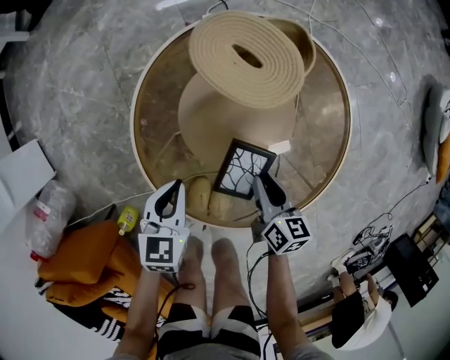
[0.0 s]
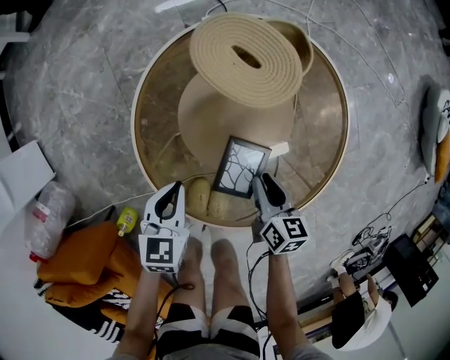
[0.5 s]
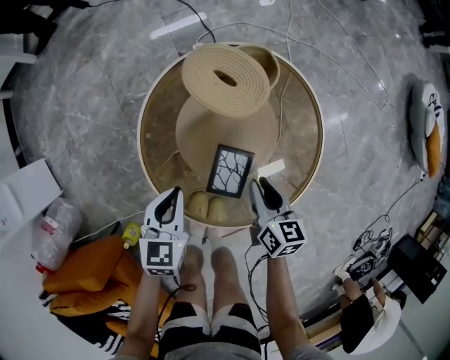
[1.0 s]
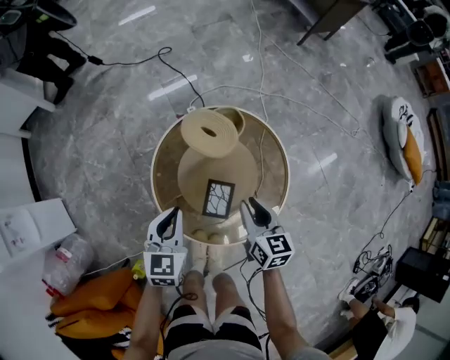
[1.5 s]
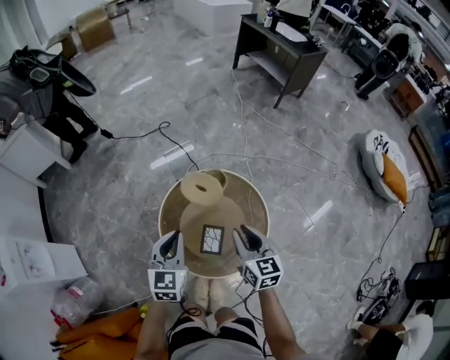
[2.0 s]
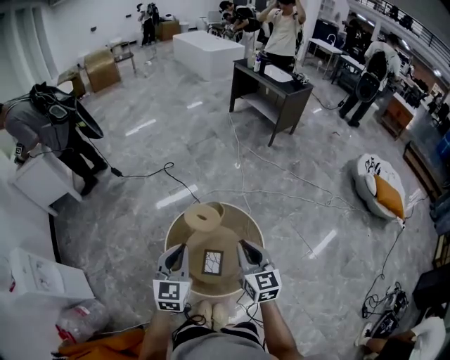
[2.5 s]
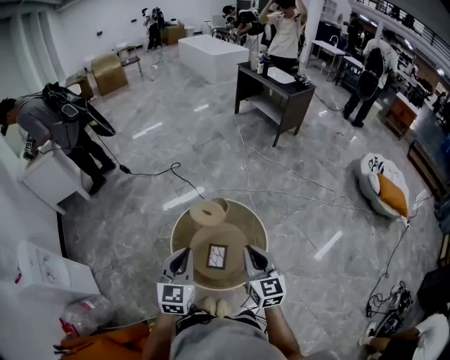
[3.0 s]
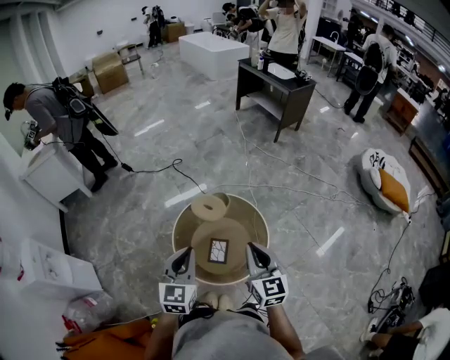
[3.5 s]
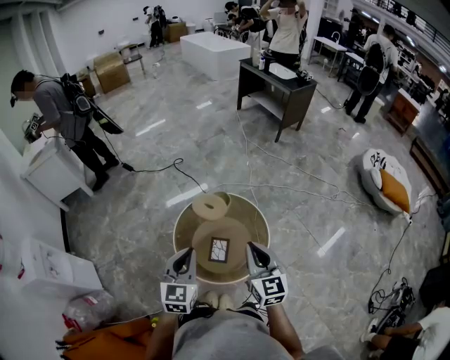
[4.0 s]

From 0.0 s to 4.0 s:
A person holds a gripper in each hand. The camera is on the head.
From 0.0 s to 2.0 s: Both grippers travel together upward, some 50 cm. The left gripper changes its angle by approximately 30 degrees; the right gripper turns by approximately 30 degrees.
From 2.0 s to 4.0 s: The left gripper heads backward and upward, covering some 20 cm, while the right gripper shifts roughly 20 cm upward and backward, and closes.

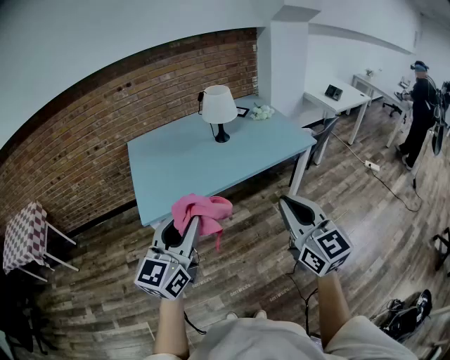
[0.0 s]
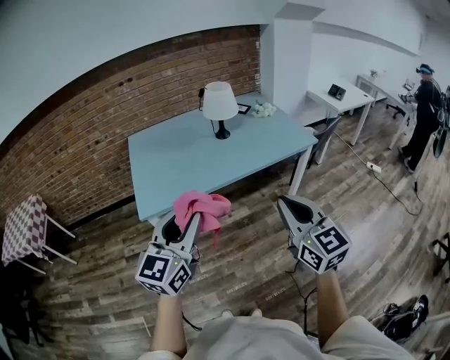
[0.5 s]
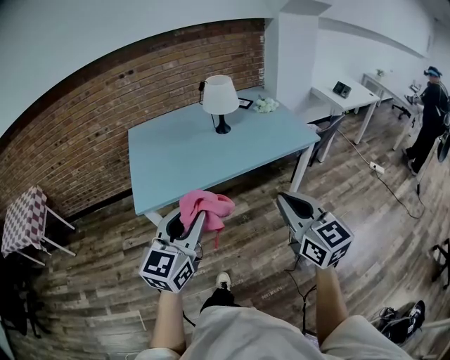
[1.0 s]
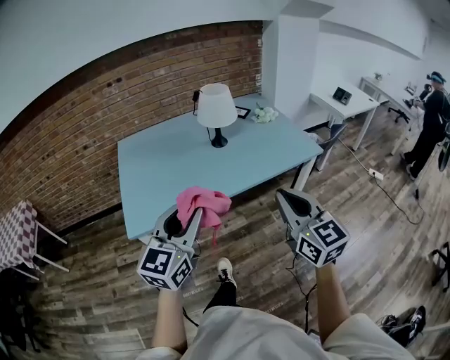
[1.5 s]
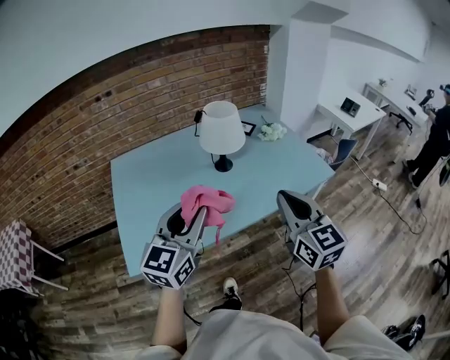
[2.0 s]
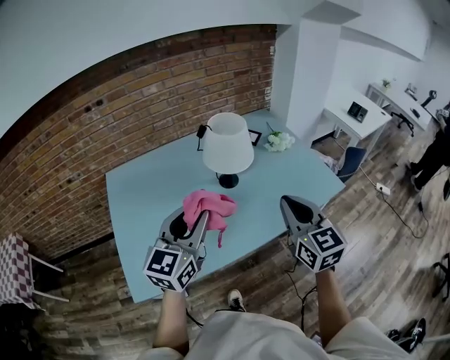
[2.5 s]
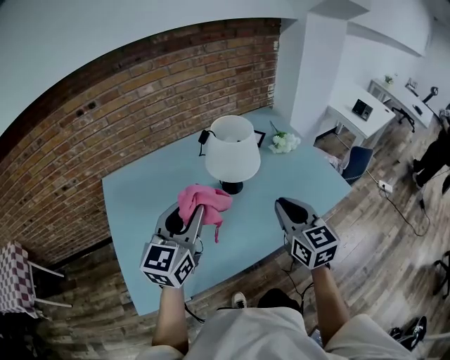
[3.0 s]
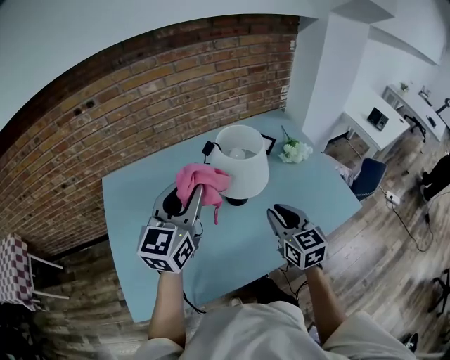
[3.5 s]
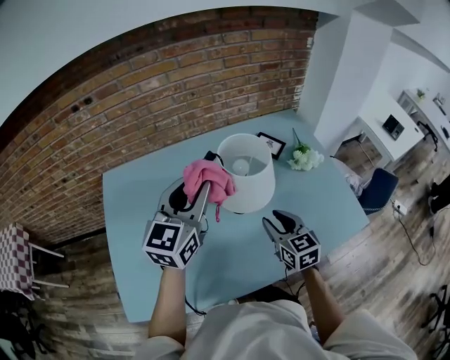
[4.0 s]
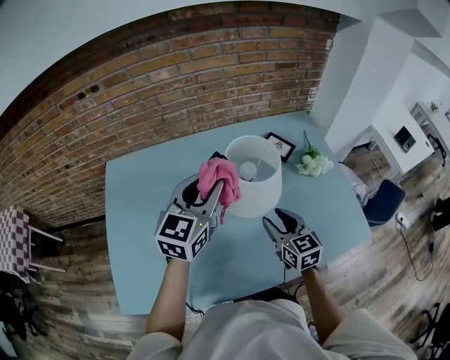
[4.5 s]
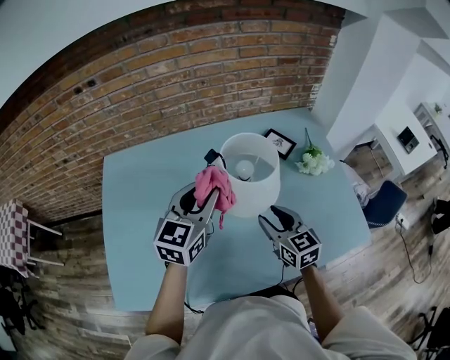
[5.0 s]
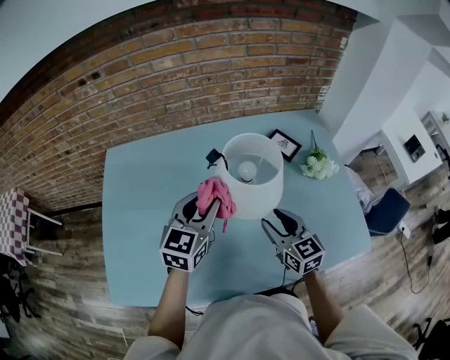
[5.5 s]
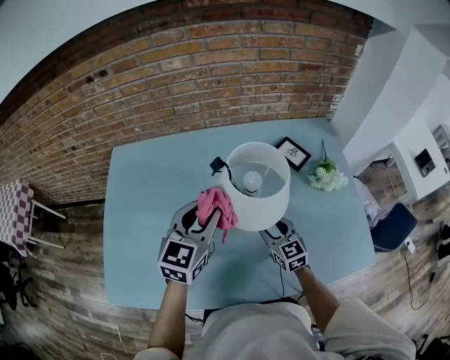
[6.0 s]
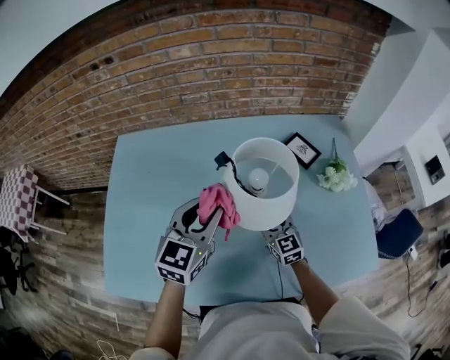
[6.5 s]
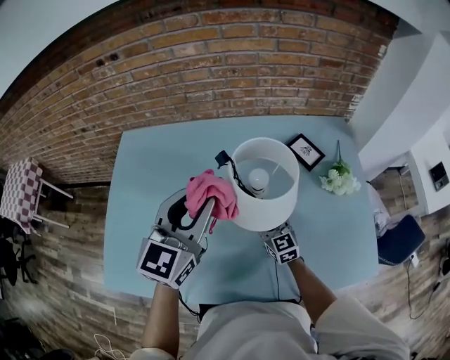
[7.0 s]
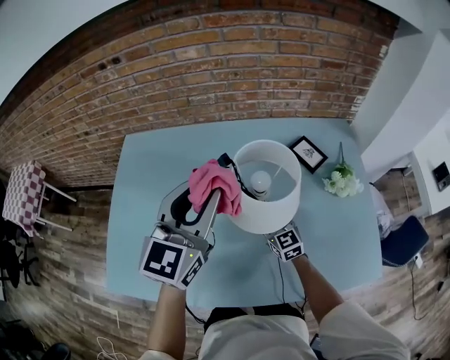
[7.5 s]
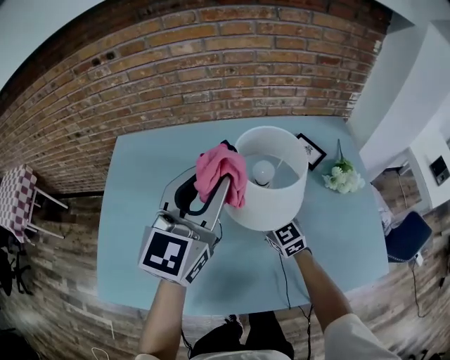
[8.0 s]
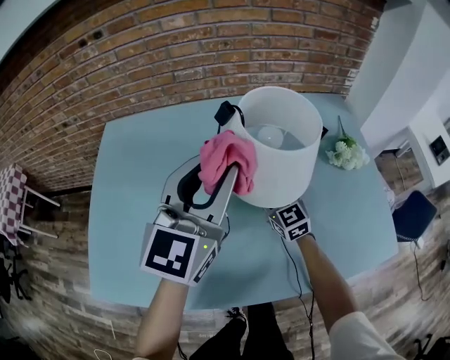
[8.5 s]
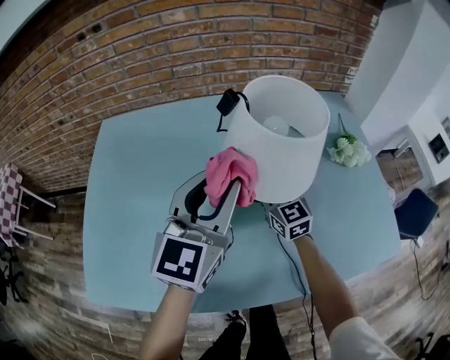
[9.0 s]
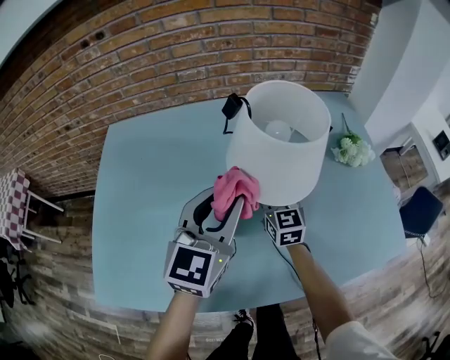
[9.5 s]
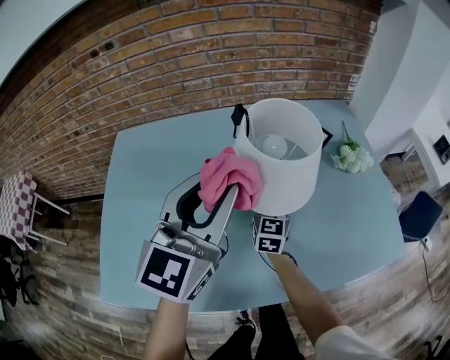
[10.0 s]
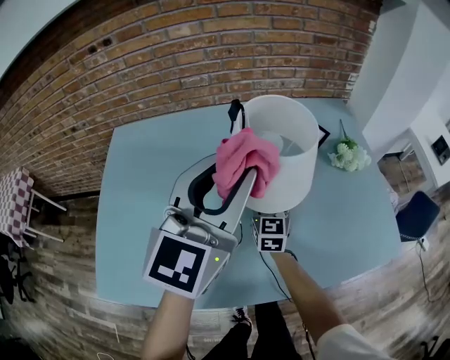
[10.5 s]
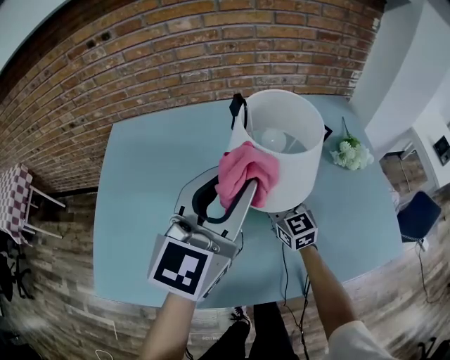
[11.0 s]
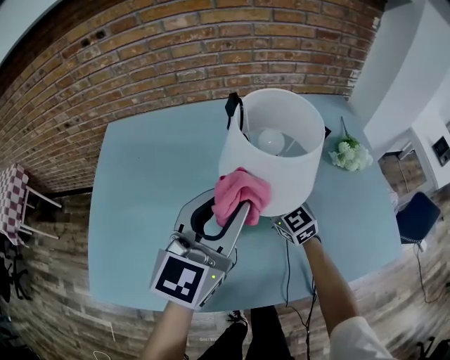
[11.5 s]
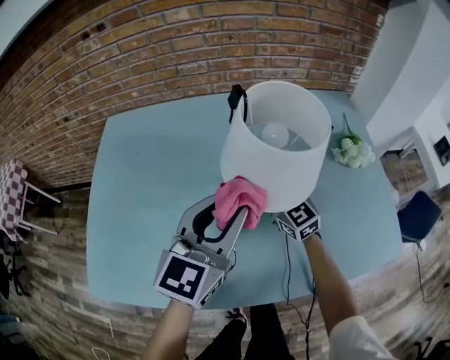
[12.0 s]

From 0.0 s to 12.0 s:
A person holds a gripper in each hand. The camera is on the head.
From 0.0 s to 2.0 s: Both grippers travel together forward, approximately 35 cm.
From 2.0 s to 4.0 s: The left gripper moves forward, about 35 cm. The right gripper moves forward and downward, some 40 cm, swivels some 20 degrees, and opens its fingers.
From 4.0 s to 6.0 s: The left gripper goes about 10 cm downward, while the right gripper travels downward and forward by some 15 cm.
From 6.0 s to 8.0 s: The right gripper heads forward and to the left, covering roughly 10 cm. The left gripper shifts approximately 10 cm upward.
From 8.0 s to 10.0 s: The right gripper changes its angle by some 40 degrees, and closes its fingers, while the left gripper is displaced backward by some 5 cm, and travels downward and back again, roughly 15 cm each way.
From 10.0 s to 12.0 s: The right gripper swivels about 40 degrees. The left gripper travels downward by roughly 10 cm.

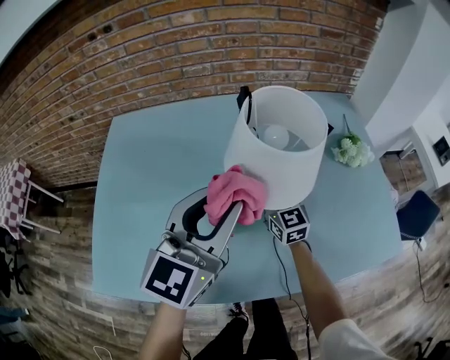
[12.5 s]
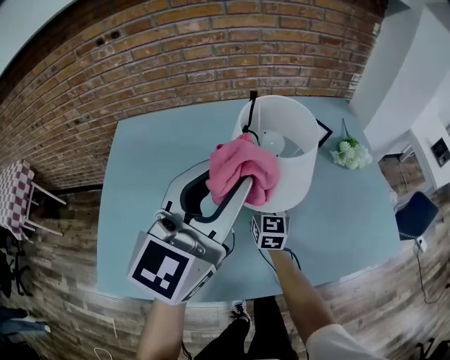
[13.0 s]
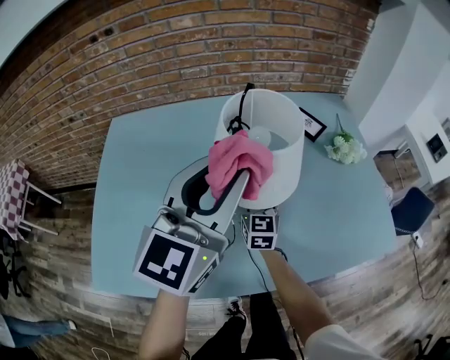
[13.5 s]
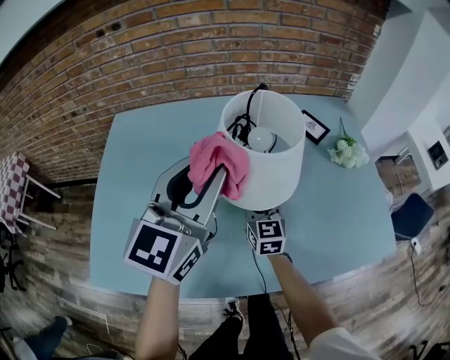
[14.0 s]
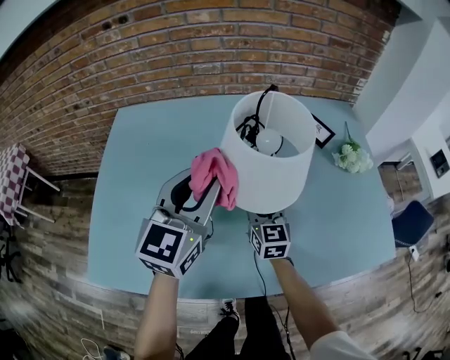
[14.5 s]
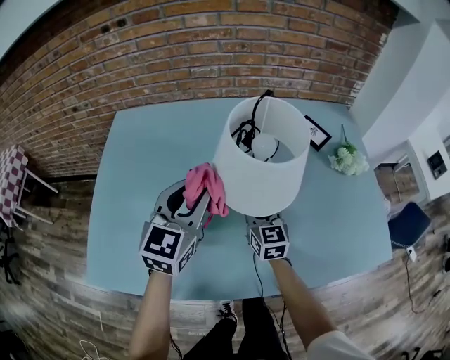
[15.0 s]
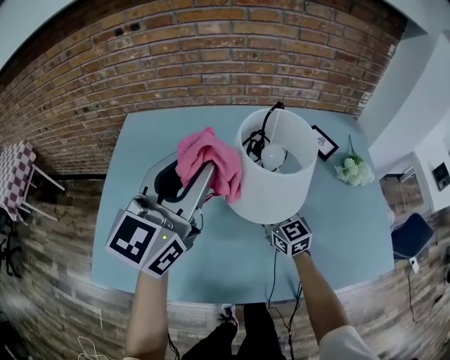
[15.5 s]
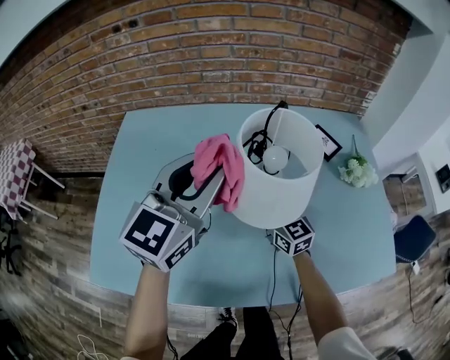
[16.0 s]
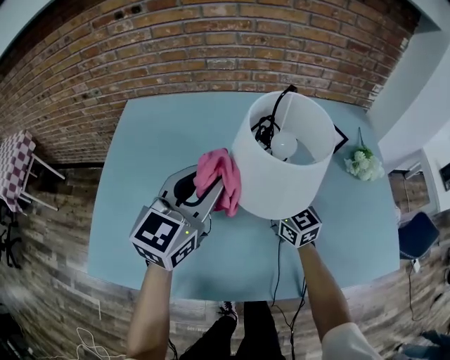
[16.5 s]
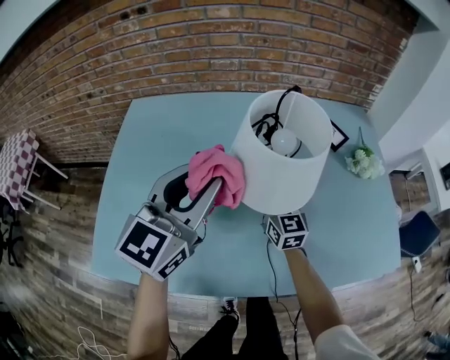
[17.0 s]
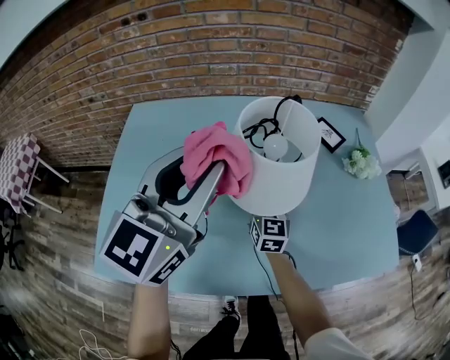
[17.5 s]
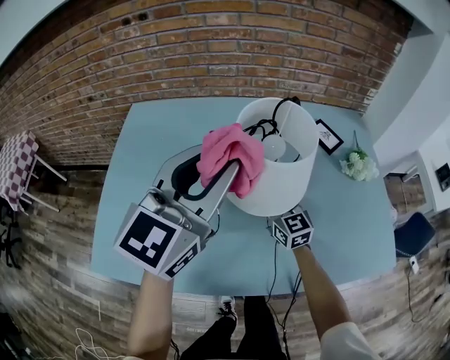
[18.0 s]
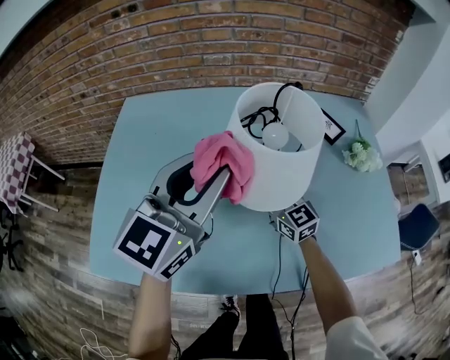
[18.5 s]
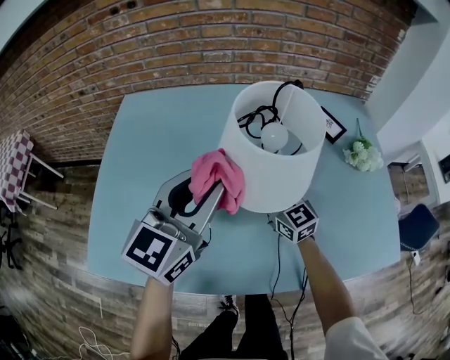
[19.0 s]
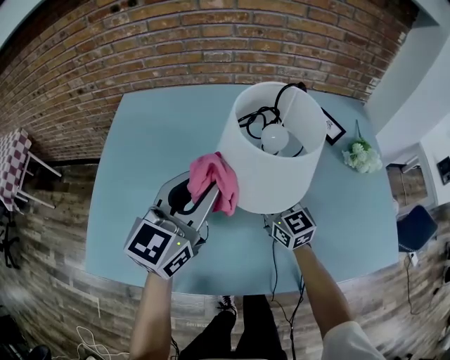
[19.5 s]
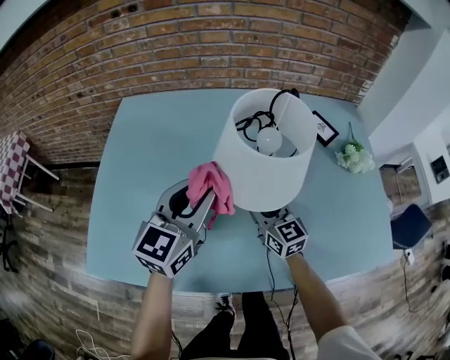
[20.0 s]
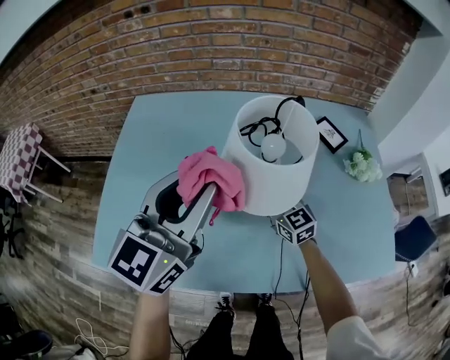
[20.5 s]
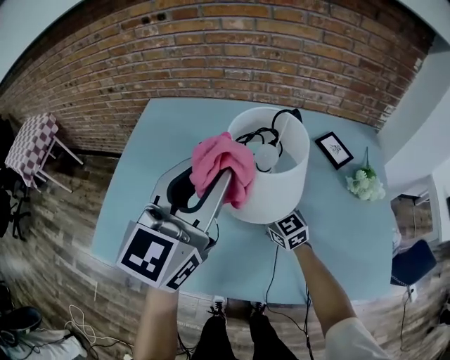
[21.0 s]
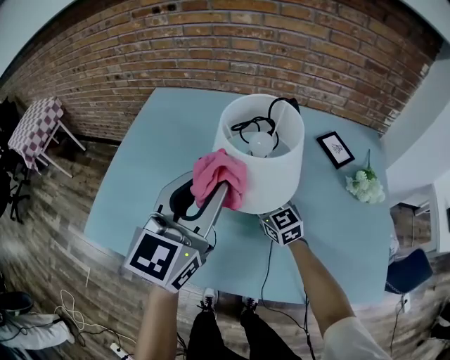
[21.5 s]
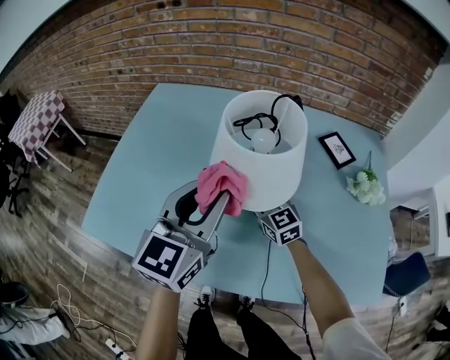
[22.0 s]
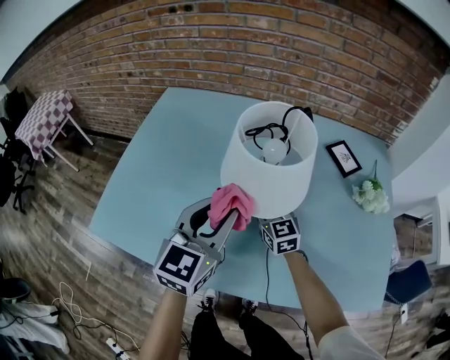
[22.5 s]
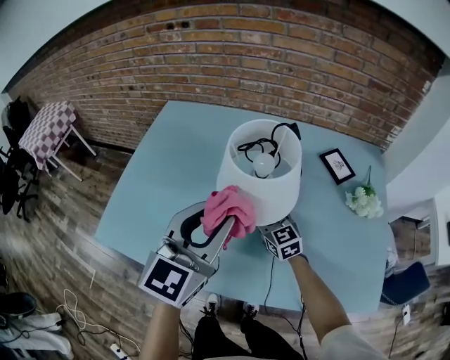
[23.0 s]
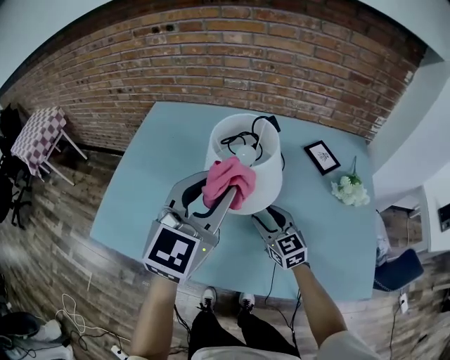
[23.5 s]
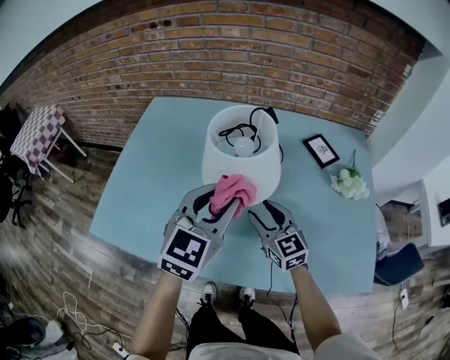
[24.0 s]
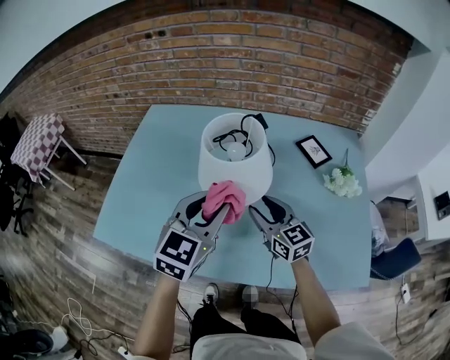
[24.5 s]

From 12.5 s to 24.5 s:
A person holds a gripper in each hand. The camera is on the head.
From 12.5 s to 14.5 s: The left gripper travels to the left by approximately 5 cm, and reaches some 10 cm upward, then returns. Meanwhile the right gripper shifts by about 5 cm.
From 14.5 s to 16.5 s: The left gripper swings up and down, about 15 cm each way, with 2 reversals. The right gripper changes its angle by approximately 20 degrees.
From 16.5 s to 18.5 s: The left gripper goes some 5 cm upward.
From 18.5 s to 20.5 s: The left gripper reaches some 10 cm downward, then returns.
From 20.5 s to 22.5 s: The left gripper heads downward, covering roughly 10 cm.
From 22.5 s to 24.5 s: The right gripper goes some 15 cm upward, backward and to the right. Meanwhile the left gripper moves upward, some 5 cm.
